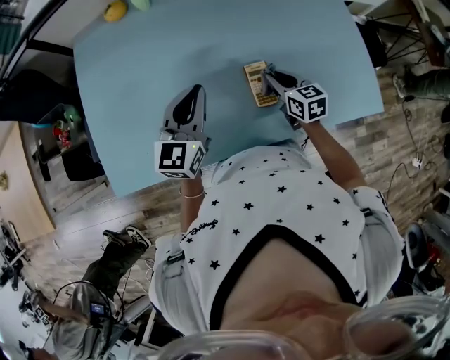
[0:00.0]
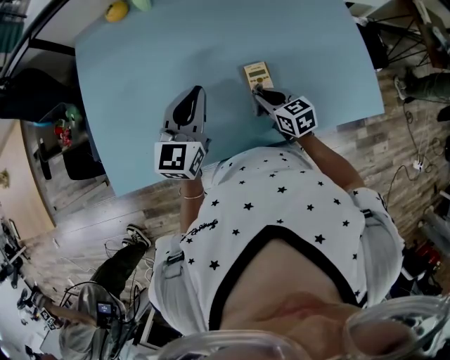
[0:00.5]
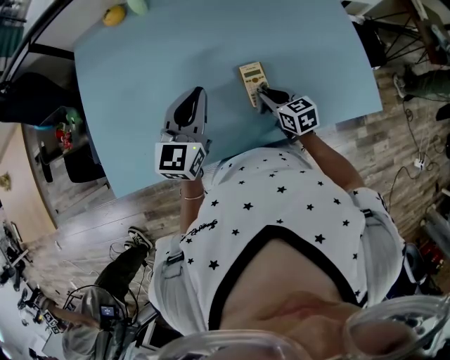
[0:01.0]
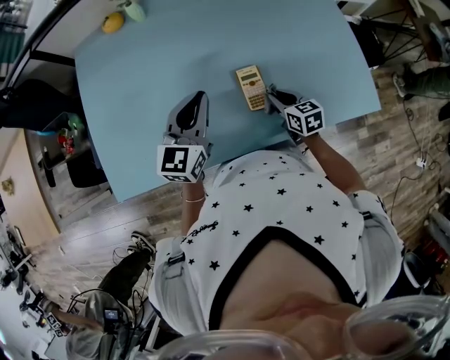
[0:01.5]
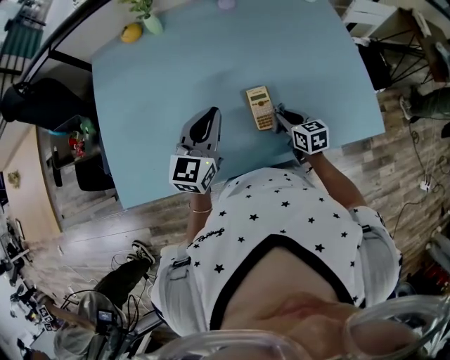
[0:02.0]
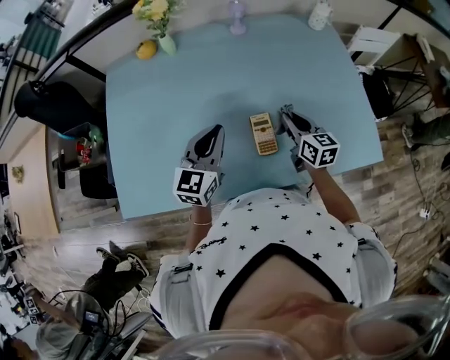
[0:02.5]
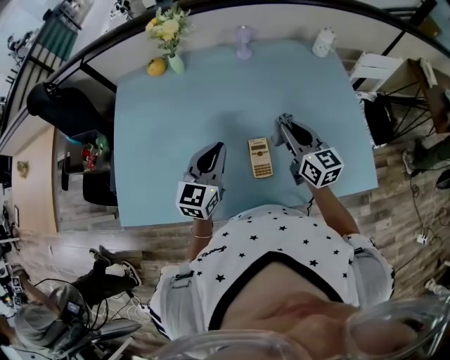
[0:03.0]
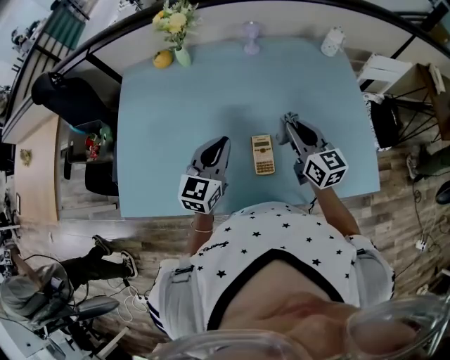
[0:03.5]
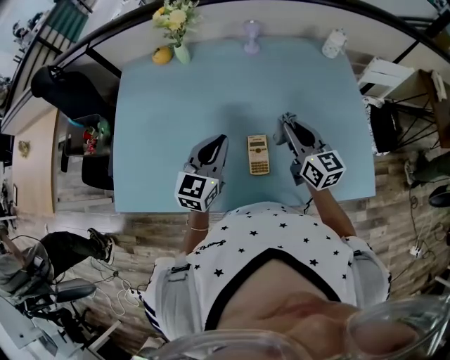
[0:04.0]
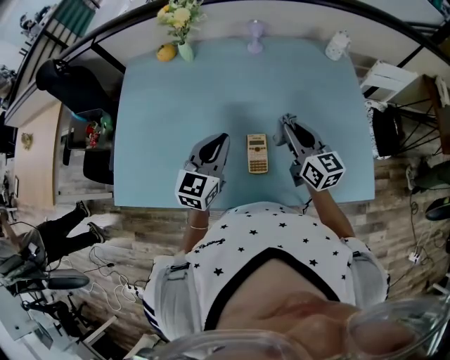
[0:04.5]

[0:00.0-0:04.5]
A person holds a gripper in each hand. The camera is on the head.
0:00.0 to 0:02.0: The right gripper moves some 5 cm.
0:02.0 to 0:04.5: The left gripper changes place by roughly 5 cm. Meanwhile the right gripper shifts approximately 20 cm upward and forward, and tilts its fingers approximately 30 degrees upward.

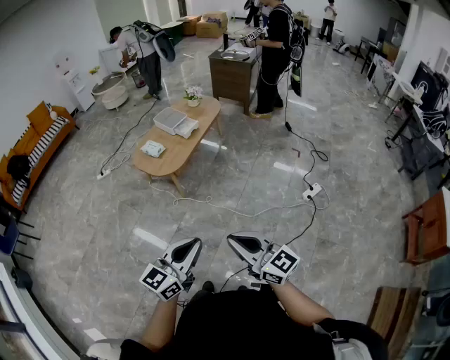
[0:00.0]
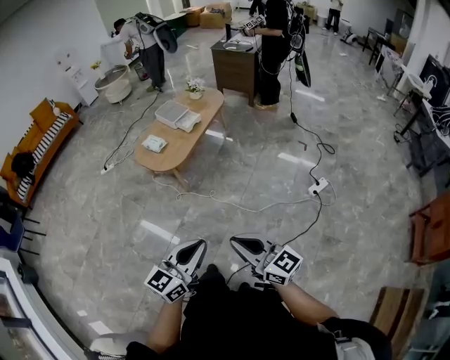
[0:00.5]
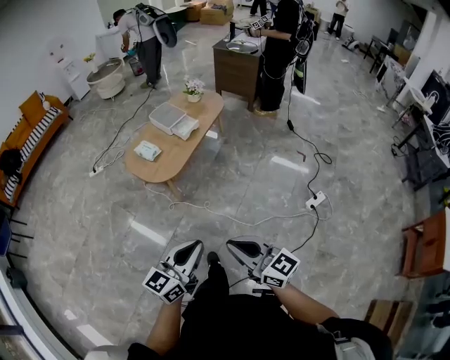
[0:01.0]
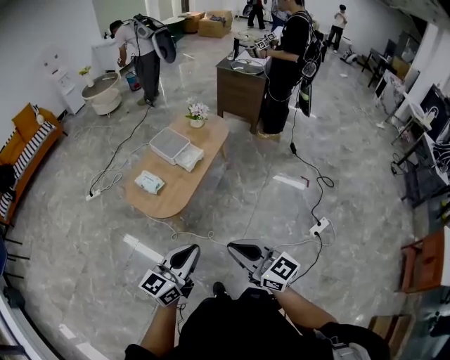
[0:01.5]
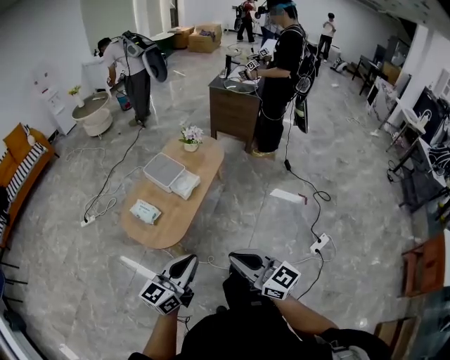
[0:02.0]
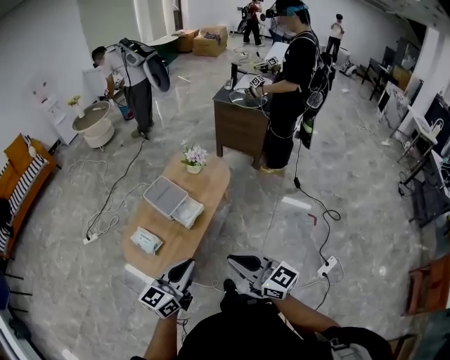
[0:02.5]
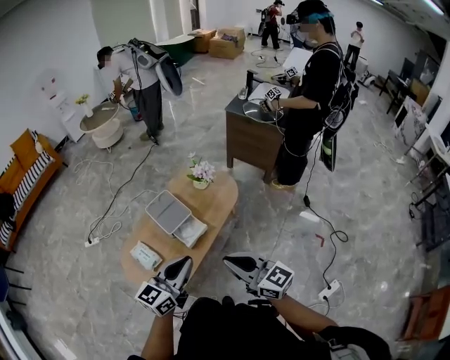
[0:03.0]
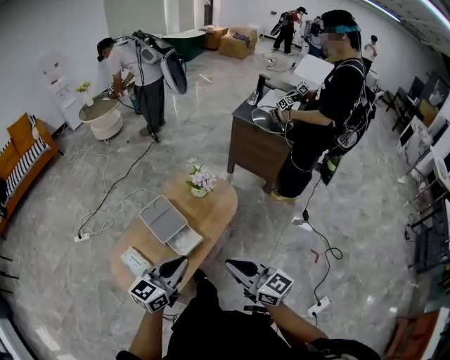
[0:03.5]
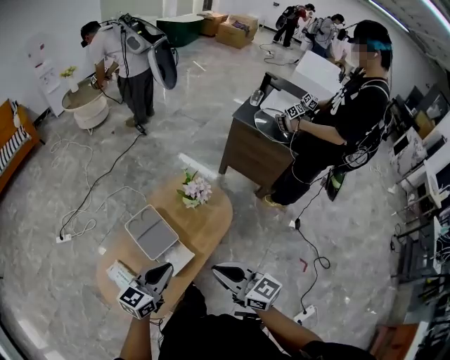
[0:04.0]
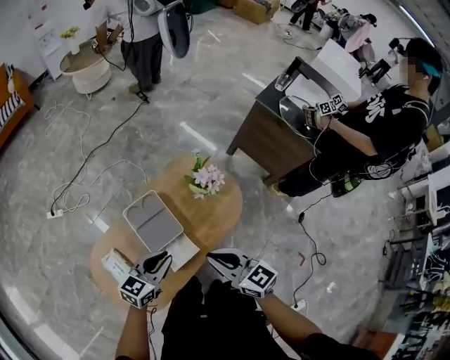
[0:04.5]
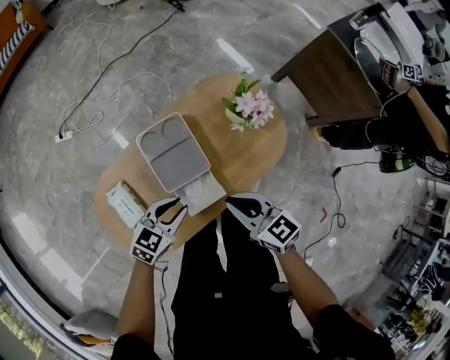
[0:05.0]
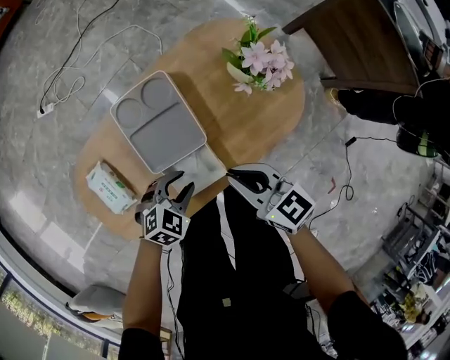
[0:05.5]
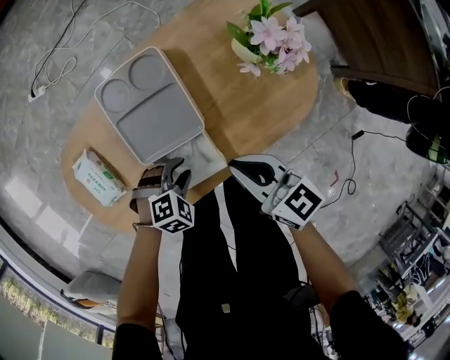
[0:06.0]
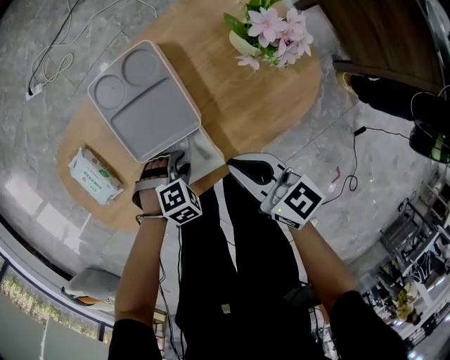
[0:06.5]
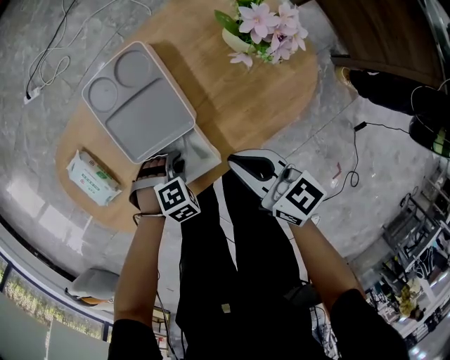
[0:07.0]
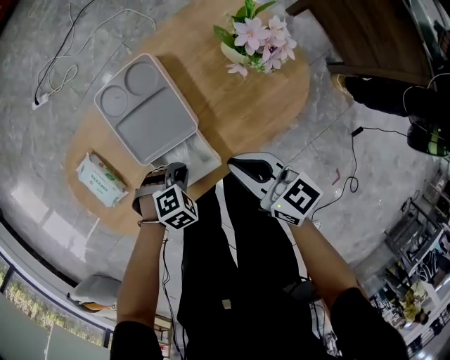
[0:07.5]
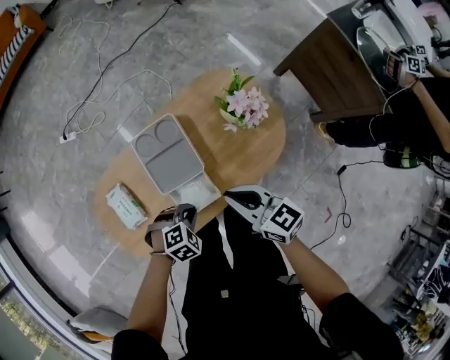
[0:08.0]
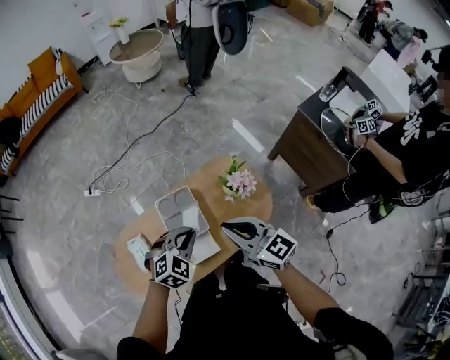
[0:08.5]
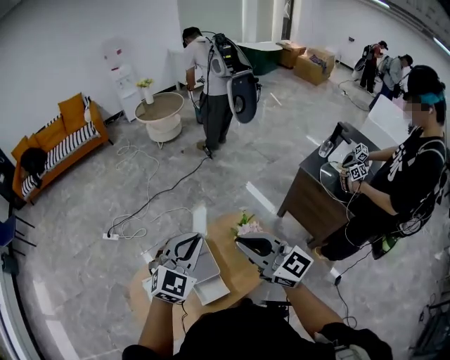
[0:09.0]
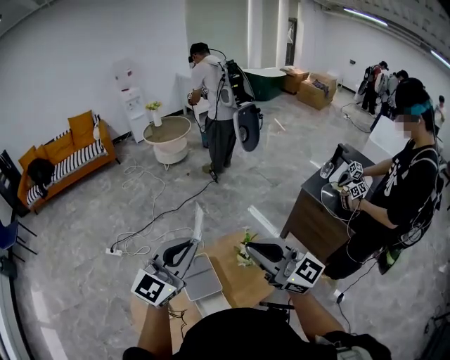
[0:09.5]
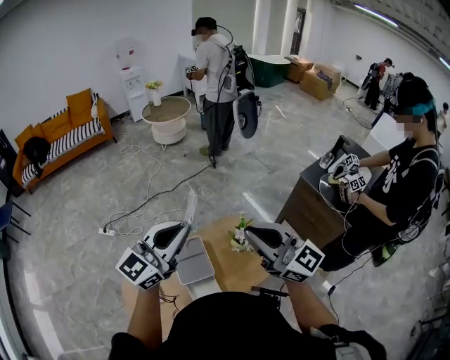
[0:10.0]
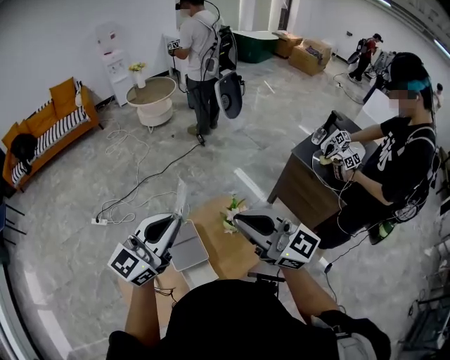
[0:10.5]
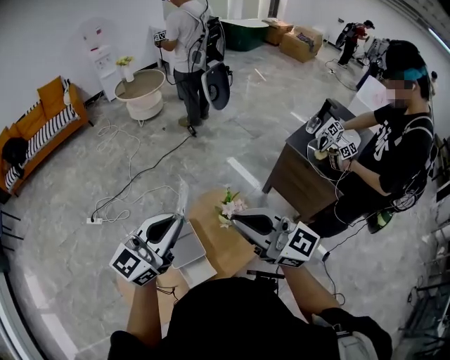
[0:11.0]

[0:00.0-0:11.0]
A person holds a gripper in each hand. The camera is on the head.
0:00.0 to 0:02.0: The pair of grippers is taken forward, some 50 cm.
0:02.0 to 0:03.5: The two grippers travel together, forward, roughly 40 cm.
0:03.5 to 0:05.5: The grippers both shift downward and forward by roughly 50 cm. The left gripper points its fingers roughly 50 degrees further downward, and opens up, while the right gripper changes its angle by some 40 degrees.
0:05.5 to 0:07.5: The left gripper travels downward by approximately 5 cm, turns by about 20 degrees, and closes up.
0:07.5 to 0:09.0: The grippers both shift upward by some 60 cm. The right gripper changes its angle by roughly 40 degrees. The left gripper angles its fingers upward, by some 60 degrees.
0:09.0 to 0:11.0: The left gripper changes its angle by roughly 40 degrees.

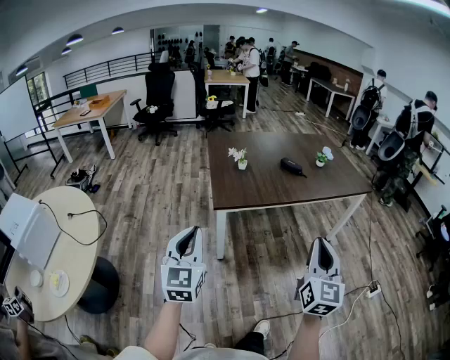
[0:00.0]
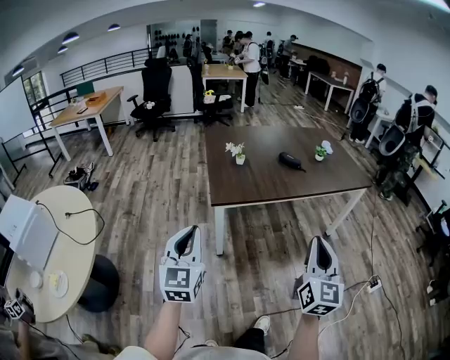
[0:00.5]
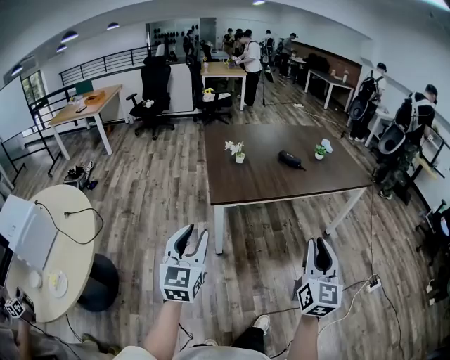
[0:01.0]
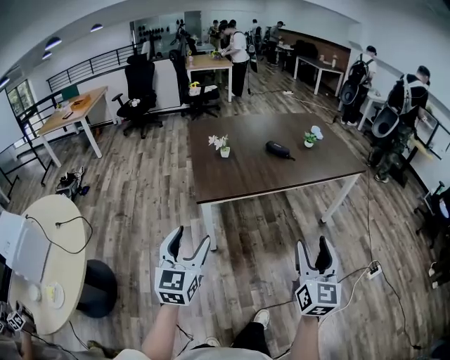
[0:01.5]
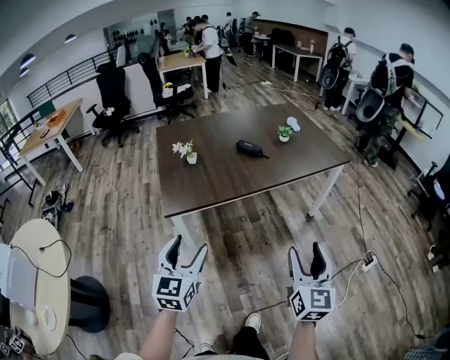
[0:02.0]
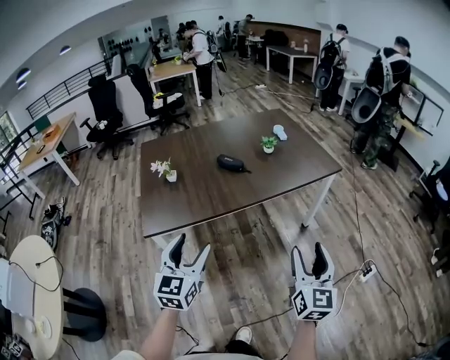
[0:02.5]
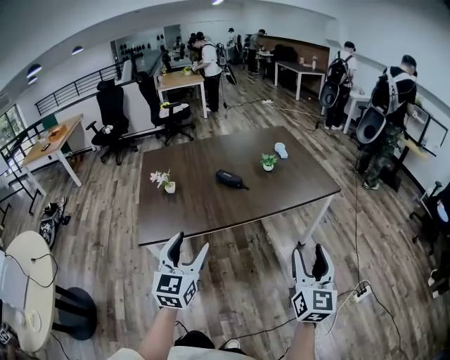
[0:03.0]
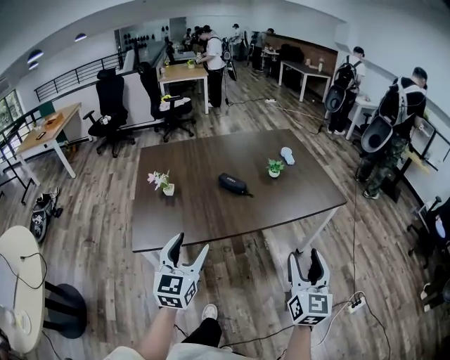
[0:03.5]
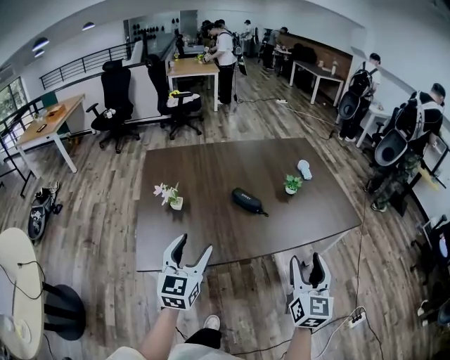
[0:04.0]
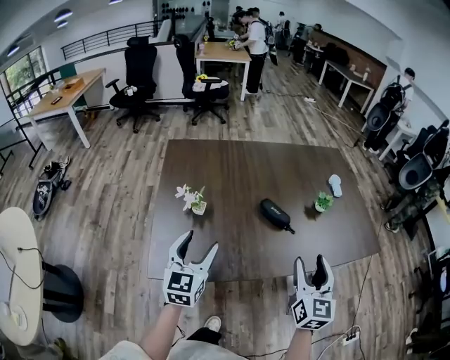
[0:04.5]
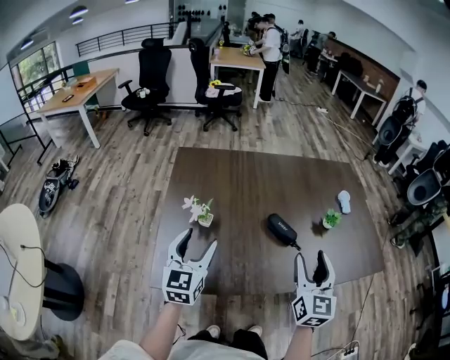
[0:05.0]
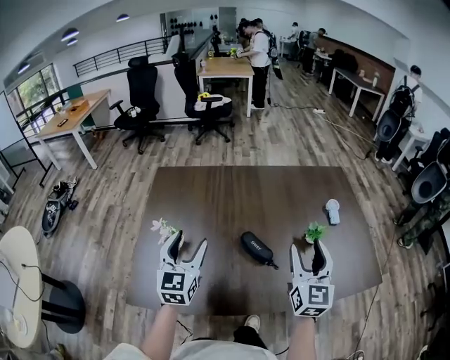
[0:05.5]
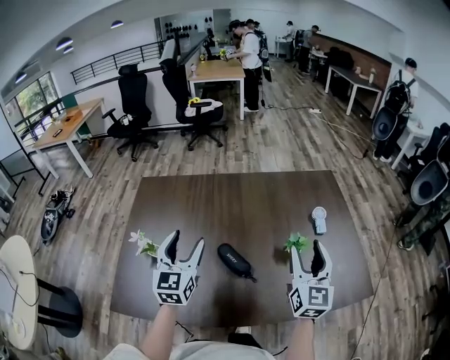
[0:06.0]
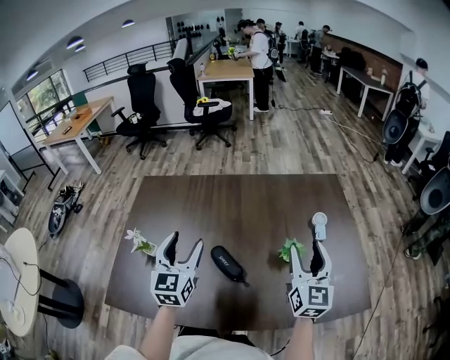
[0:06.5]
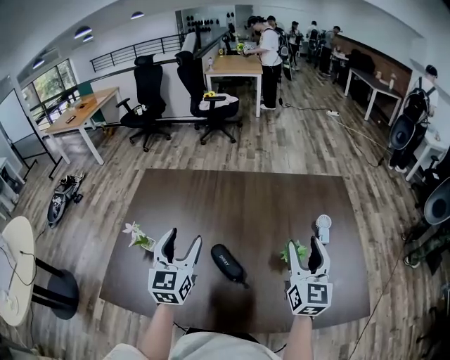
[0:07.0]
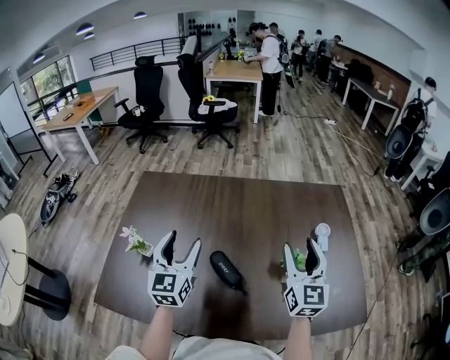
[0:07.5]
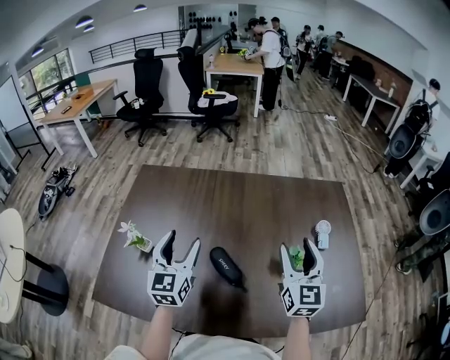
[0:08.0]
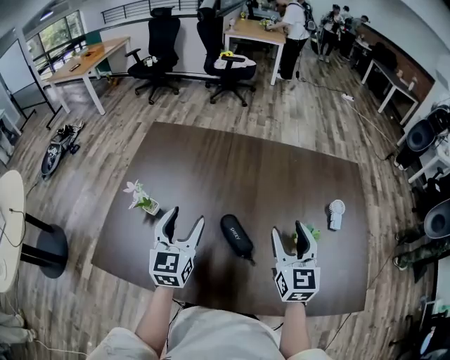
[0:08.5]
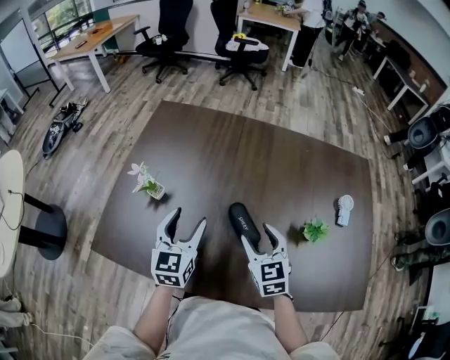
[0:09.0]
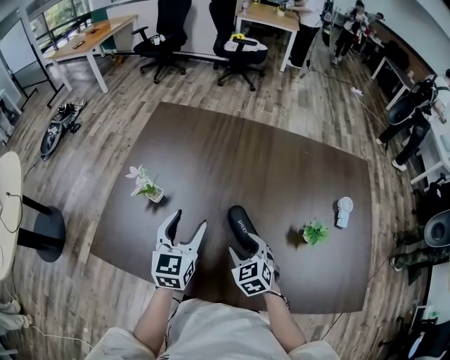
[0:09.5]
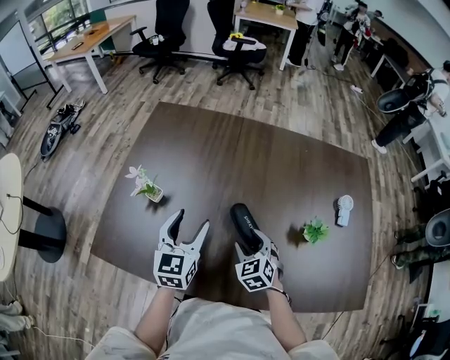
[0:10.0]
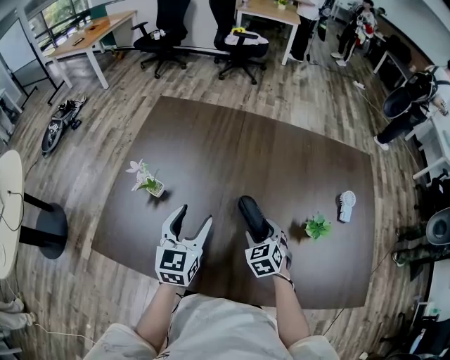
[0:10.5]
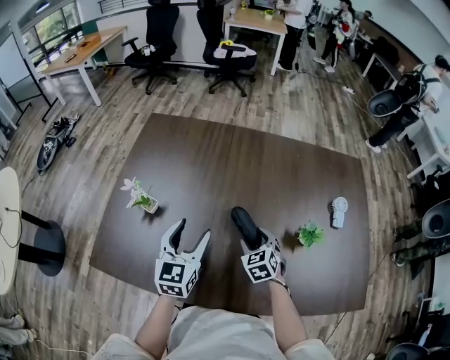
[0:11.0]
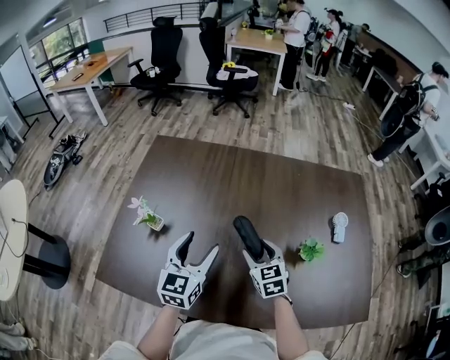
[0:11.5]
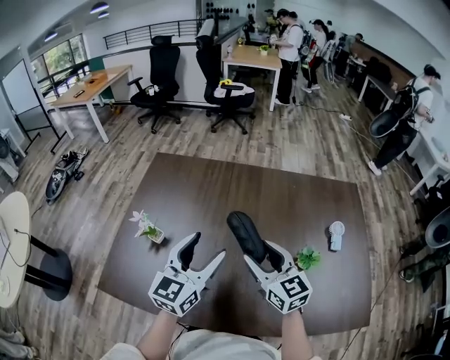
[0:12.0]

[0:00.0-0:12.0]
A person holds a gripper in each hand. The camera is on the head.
0:00.0 to 0:02.0: Both grippers travel together to the right, forward and downward, roughly 20 cm. The left gripper opens its fingers; the right gripper opens up.
0:02.0 to 0:04.0: The grippers both shift forward by roughly 35 cm.
0:04.0 to 0:06.0: The grippers both shift forward by about 35 cm.
0:06.0 to 0:08.0: The right gripper goes about 5 cm forward.
0:08.0 to 0:10.0: The right gripper travels downward and to the left by some 30 cm, and tips its fingers downward by roughly 40 degrees; the left gripper shifts about 10 cm downward.
0:10.0 to 0:12.0: The left gripper heads upward and to the right, covering roughly 15 cm, and swivels about 20 degrees. The right gripper heads upward, covering approximately 20 cm, and angles its fingers upward, by approximately 30 degrees.
